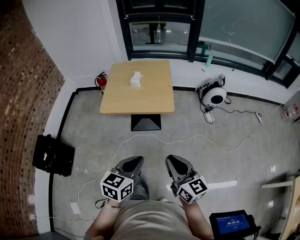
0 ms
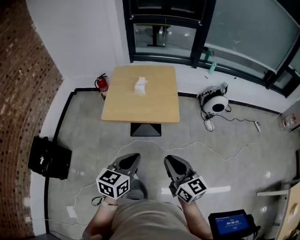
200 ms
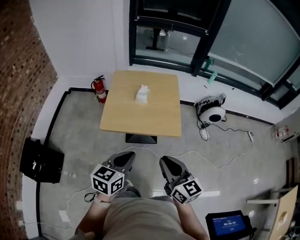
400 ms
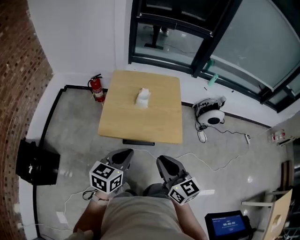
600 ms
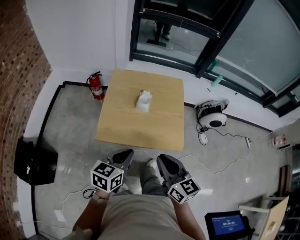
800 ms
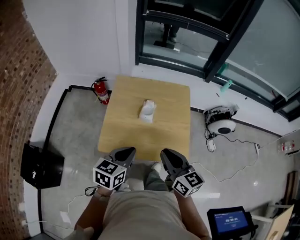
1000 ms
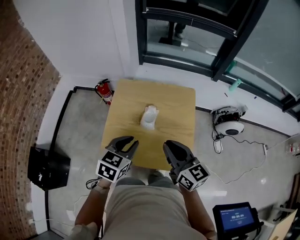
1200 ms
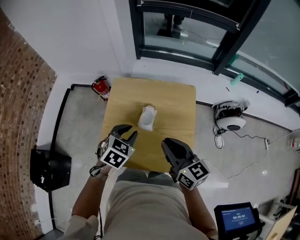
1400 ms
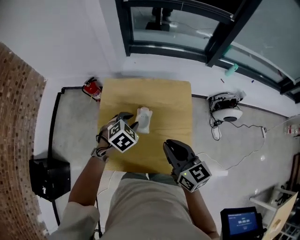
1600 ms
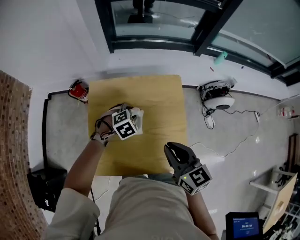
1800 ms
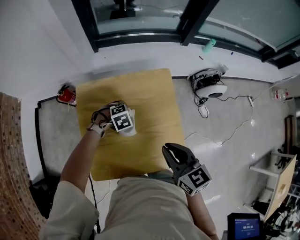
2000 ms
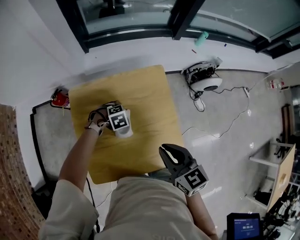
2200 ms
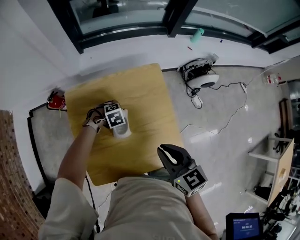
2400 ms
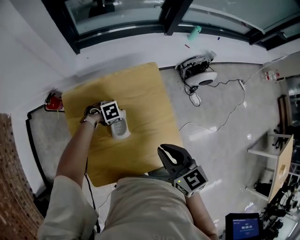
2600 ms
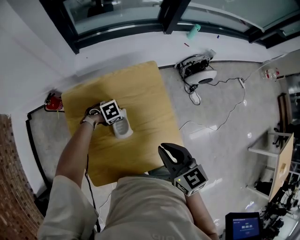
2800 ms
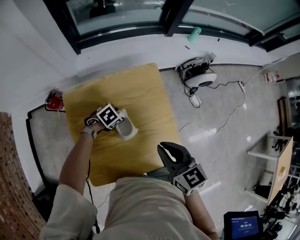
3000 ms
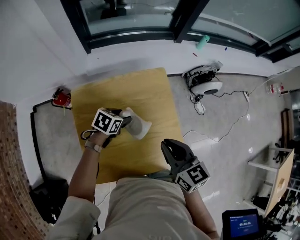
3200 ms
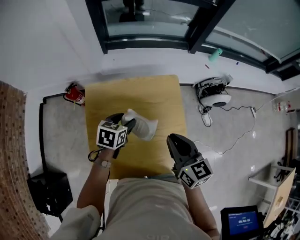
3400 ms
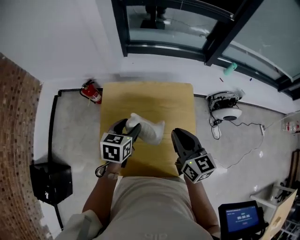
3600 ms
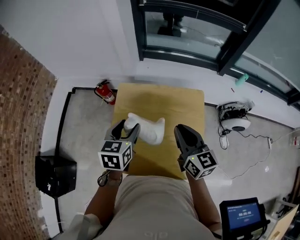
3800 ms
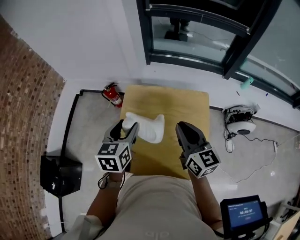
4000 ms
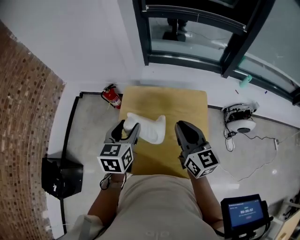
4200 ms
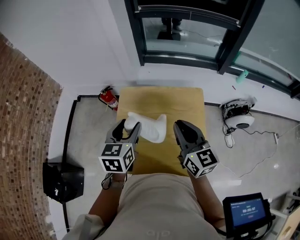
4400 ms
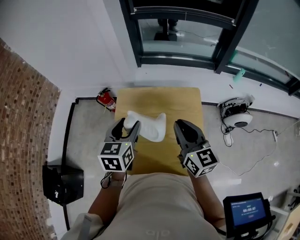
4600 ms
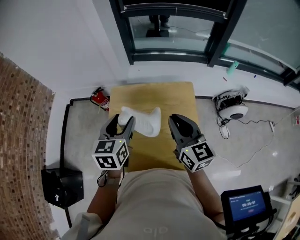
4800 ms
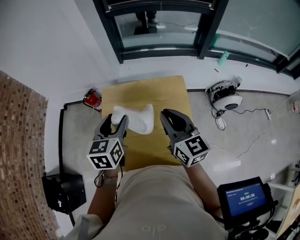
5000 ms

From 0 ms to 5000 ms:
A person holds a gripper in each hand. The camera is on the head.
From 0 ms to 1600 ms: The two grippers travel together, forward, roughly 70 cm. The left gripper angles its fingers downward, by some 30 degrees, and opens its fingers.
From 1600 ms to 3400 ms: The left gripper moves some 20 cm downward and comes back, rotates approximately 40 degrees, and opens up. The right gripper ends up about 5 cm from where it was.
From 3400 ms to 5000 ms: The left gripper goes approximately 15 cm upward and to the left, and rotates about 30 degrees, while the right gripper is displaced upward and forward by about 10 cm.

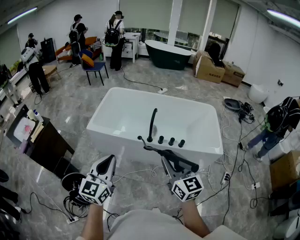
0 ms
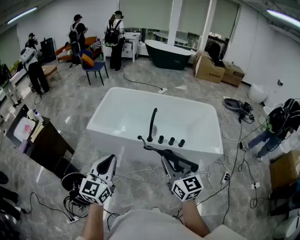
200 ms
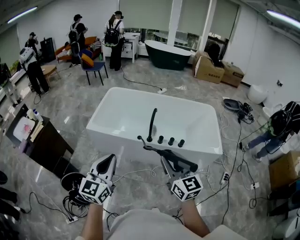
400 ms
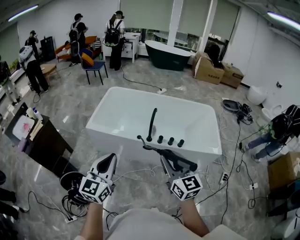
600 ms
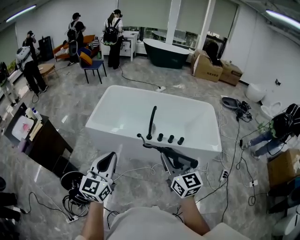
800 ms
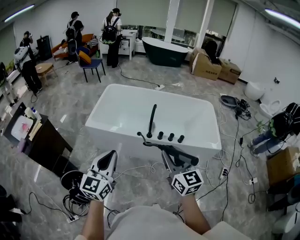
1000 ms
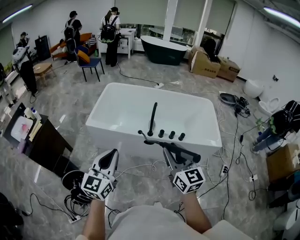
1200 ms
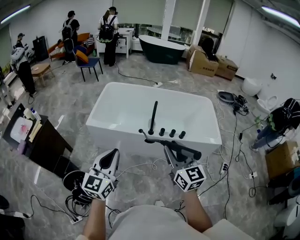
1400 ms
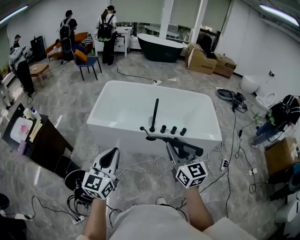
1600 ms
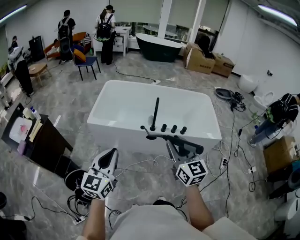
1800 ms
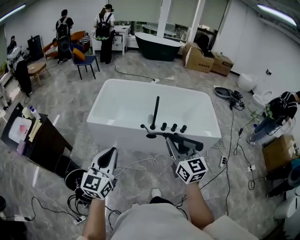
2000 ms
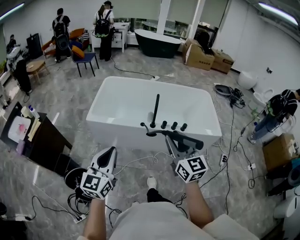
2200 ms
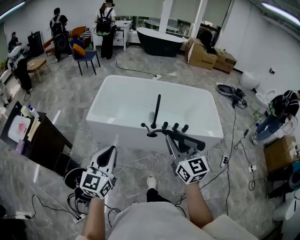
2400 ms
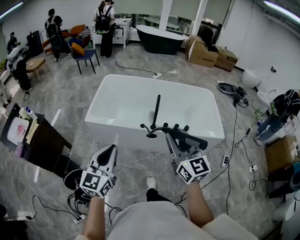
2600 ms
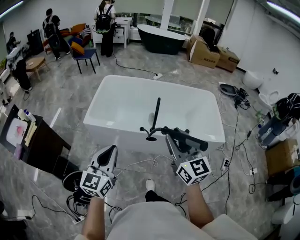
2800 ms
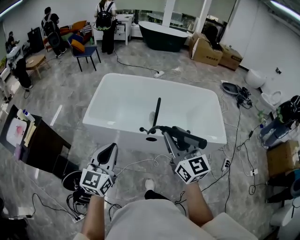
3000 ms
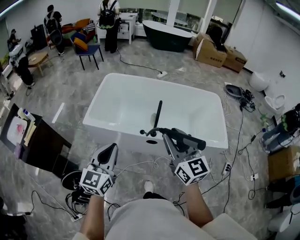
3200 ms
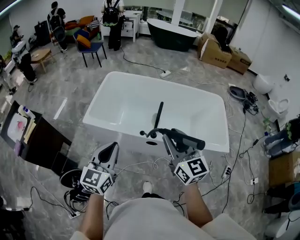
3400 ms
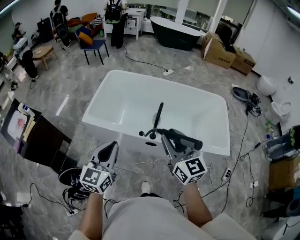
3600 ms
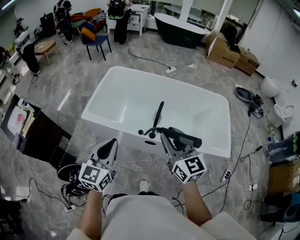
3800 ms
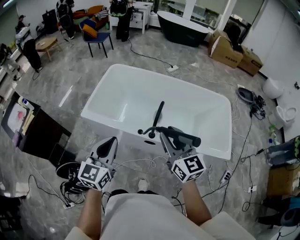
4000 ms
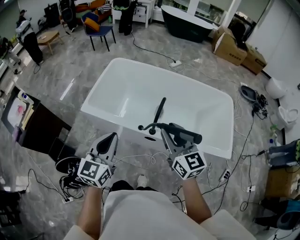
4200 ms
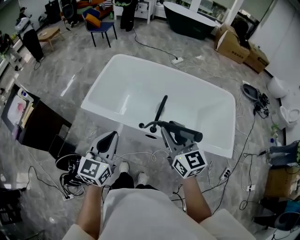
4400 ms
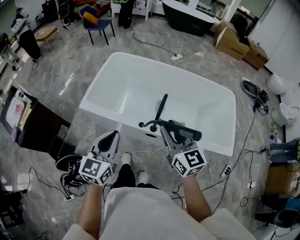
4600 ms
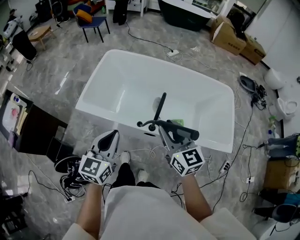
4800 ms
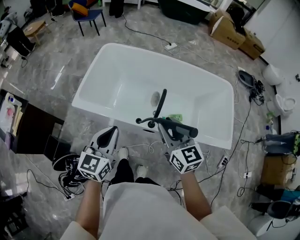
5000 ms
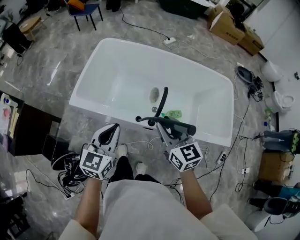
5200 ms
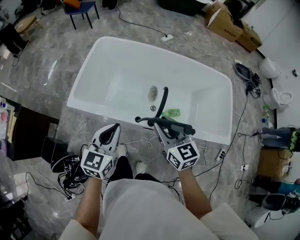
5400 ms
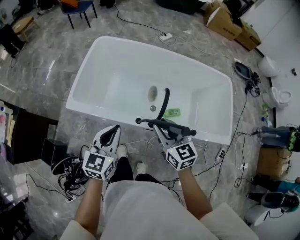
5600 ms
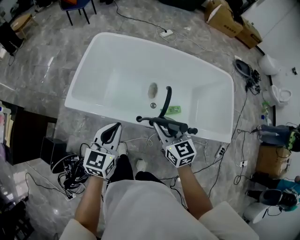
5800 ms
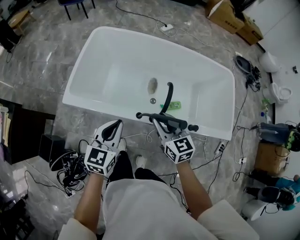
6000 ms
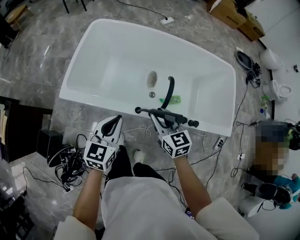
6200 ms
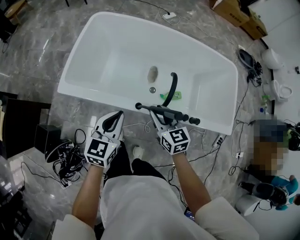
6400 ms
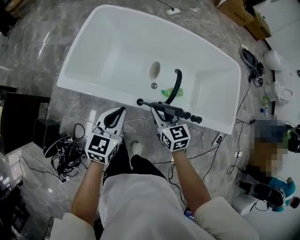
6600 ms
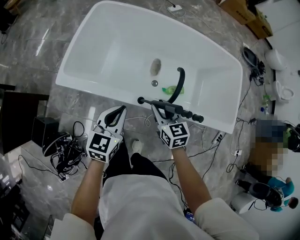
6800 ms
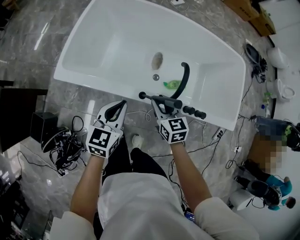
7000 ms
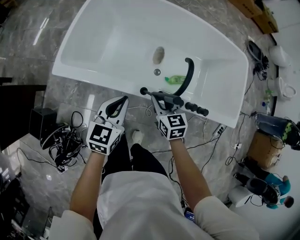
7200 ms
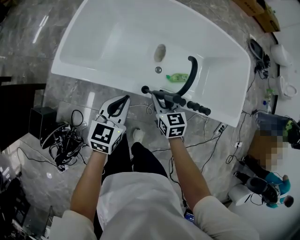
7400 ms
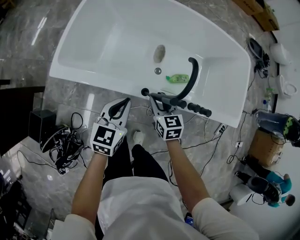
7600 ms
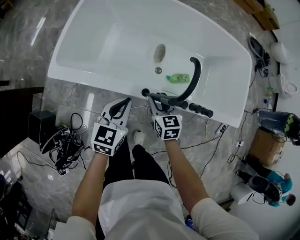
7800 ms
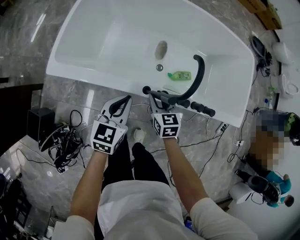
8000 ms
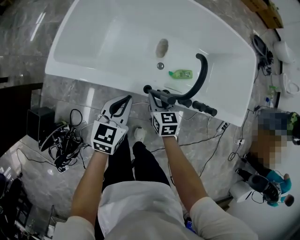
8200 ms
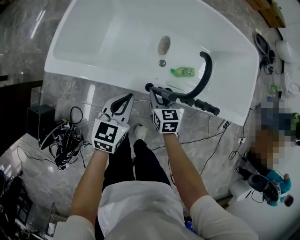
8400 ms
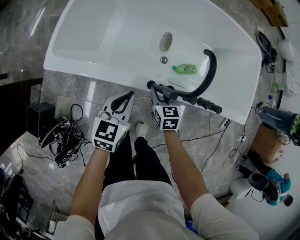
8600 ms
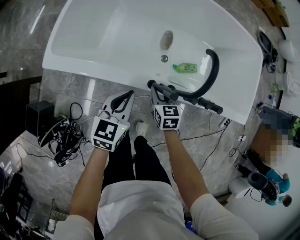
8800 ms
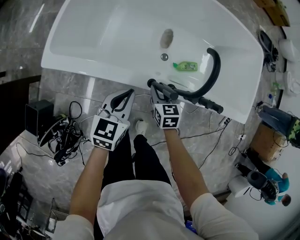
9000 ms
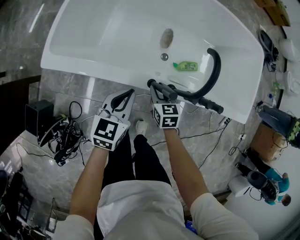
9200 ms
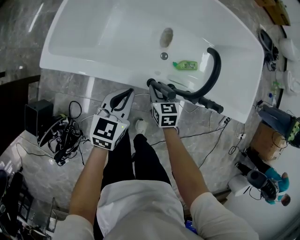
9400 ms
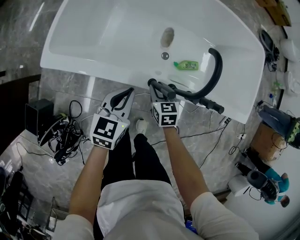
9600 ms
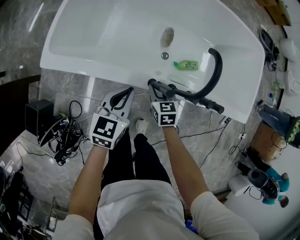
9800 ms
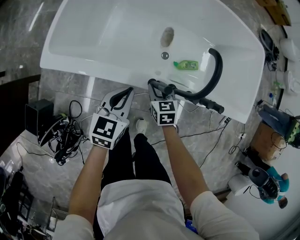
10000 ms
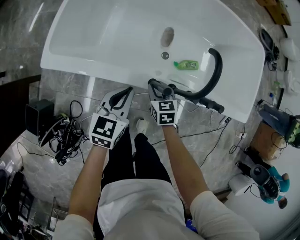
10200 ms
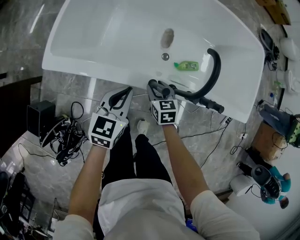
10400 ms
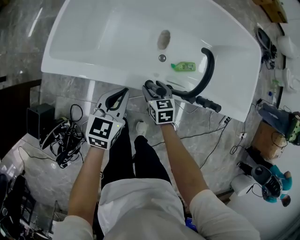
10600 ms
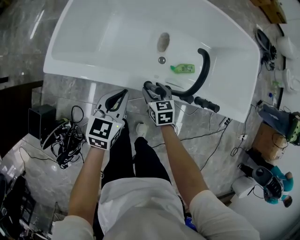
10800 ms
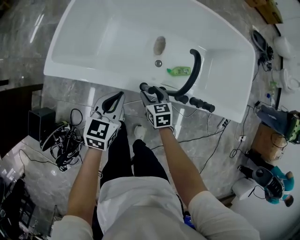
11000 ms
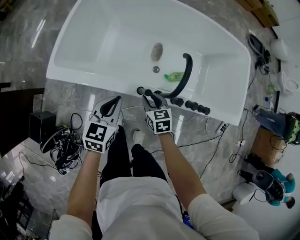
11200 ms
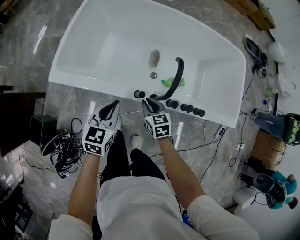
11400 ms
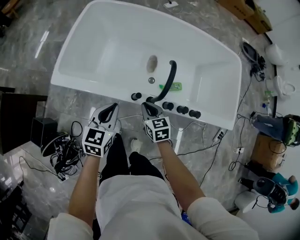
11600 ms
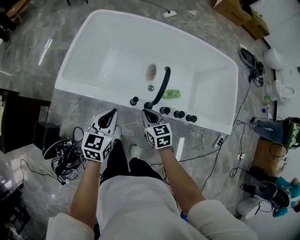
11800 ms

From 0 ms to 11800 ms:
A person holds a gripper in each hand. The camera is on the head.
From 0 ms to 1400 ms: The grippers move only a little.
From 1400 ms to 3000 ms: Both grippers move forward, approximately 10 cm.
From 3000 ms to 4400 ms: The left gripper is displaced forward and to the right by some 15 cm. Meanwhile the right gripper travels forward and downward by about 15 cm.
From 4400 ms to 6000 ms: The left gripper moves forward and downward, roughly 20 cm. The right gripper shifts roughly 20 cm downward and forward.
From 6000 ms to 7400 ms: The grippers both shift downward by approximately 15 cm.
From 7400 ms to 8800 ms: The grippers both shift downward by approximately 10 cm.
From 8800 ms to 10400 ms: The grippers make only small movements.
From 10400 ms to 11800 ms: The left gripper moves upward and backward, some 15 cm. Meanwhile the right gripper travels upward by about 15 cm, and closes.

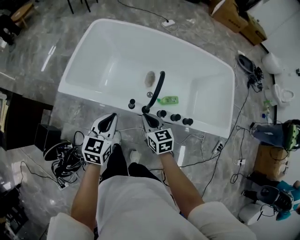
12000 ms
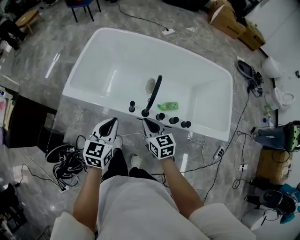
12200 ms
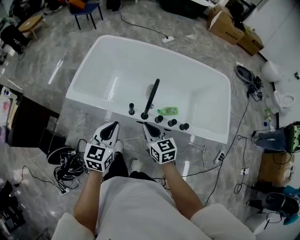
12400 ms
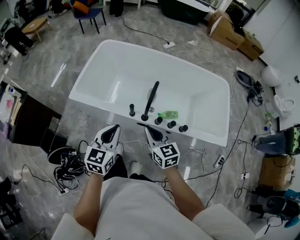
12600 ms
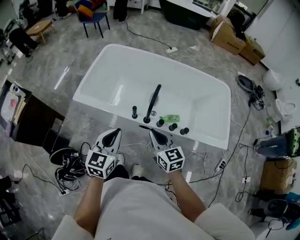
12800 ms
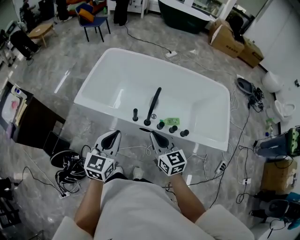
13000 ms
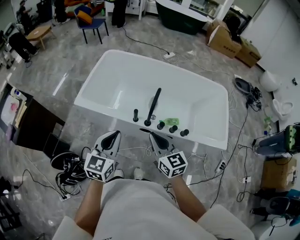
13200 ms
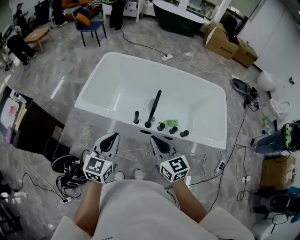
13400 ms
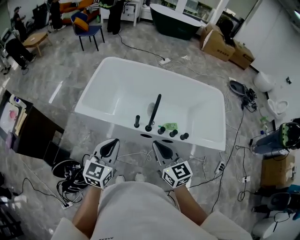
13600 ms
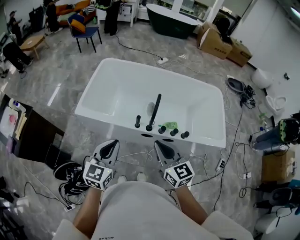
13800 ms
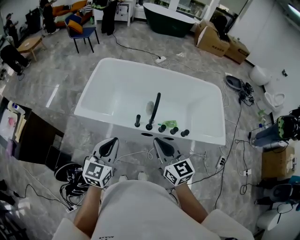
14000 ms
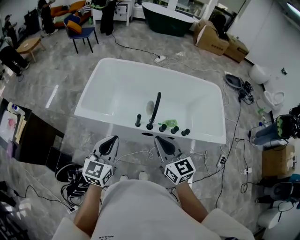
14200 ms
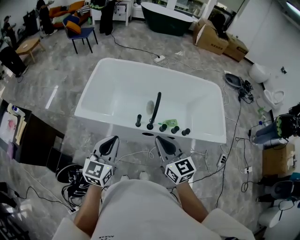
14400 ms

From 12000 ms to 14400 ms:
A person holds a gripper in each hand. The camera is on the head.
From 12000 ms to 13200 ms: The grippers both shift upward and backward by roughly 20 cm.
From 13200 ms to 14400 ms: The left gripper heads to the left, covering some 5 cm. Meanwhile the right gripper is displaced upward by approximately 5 cm.

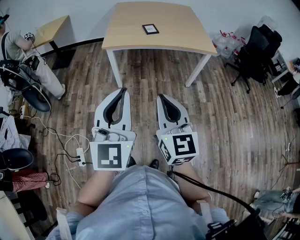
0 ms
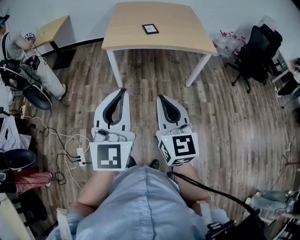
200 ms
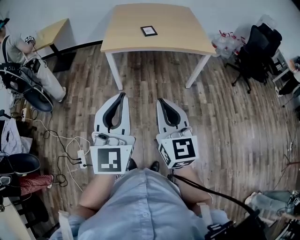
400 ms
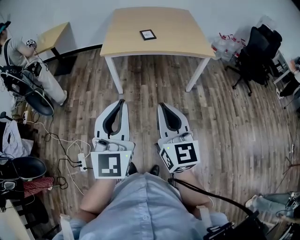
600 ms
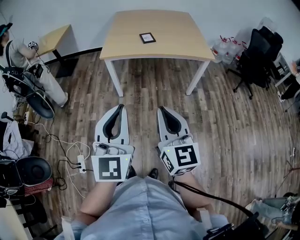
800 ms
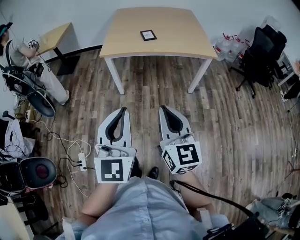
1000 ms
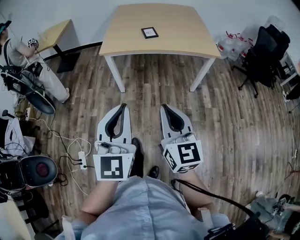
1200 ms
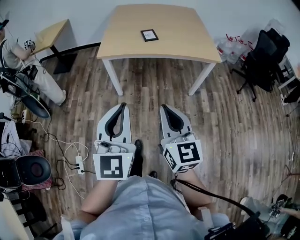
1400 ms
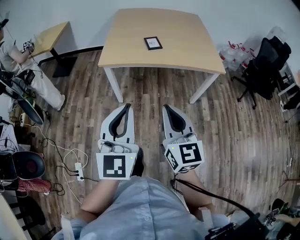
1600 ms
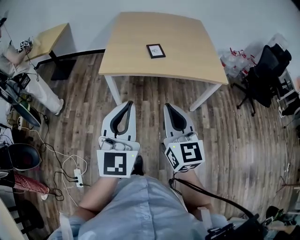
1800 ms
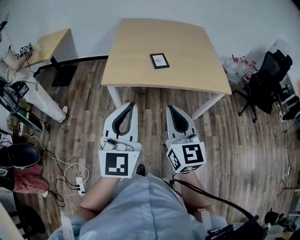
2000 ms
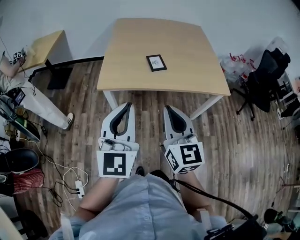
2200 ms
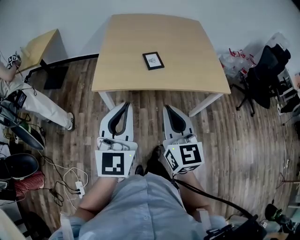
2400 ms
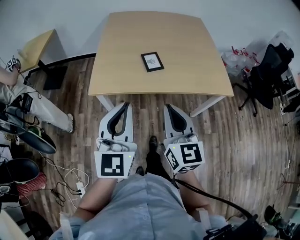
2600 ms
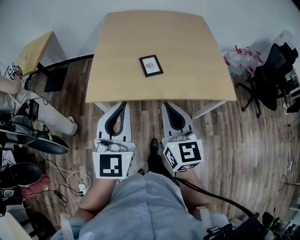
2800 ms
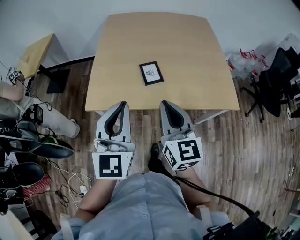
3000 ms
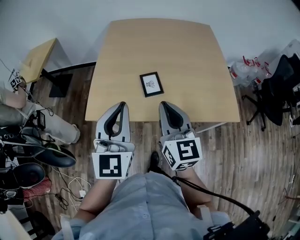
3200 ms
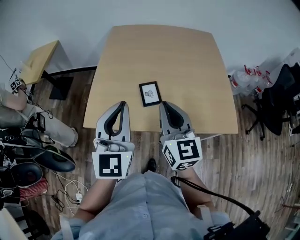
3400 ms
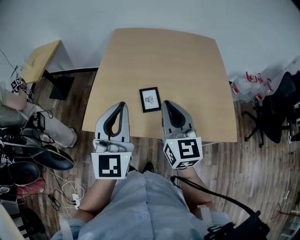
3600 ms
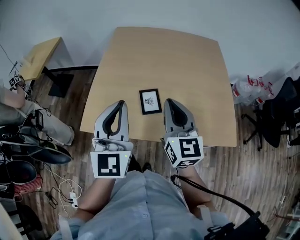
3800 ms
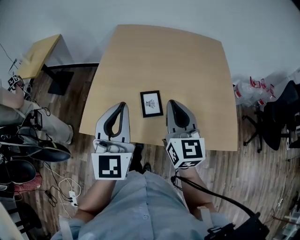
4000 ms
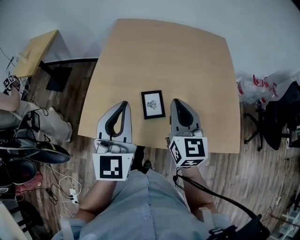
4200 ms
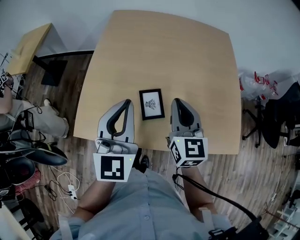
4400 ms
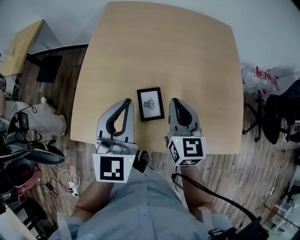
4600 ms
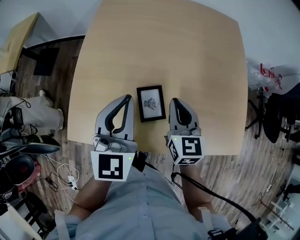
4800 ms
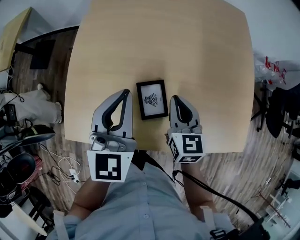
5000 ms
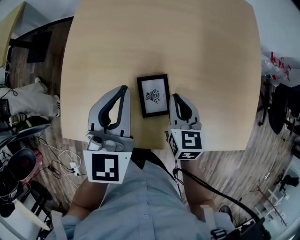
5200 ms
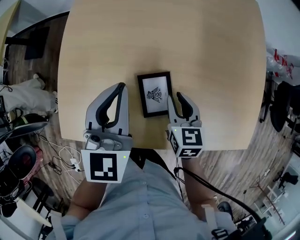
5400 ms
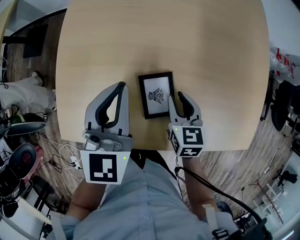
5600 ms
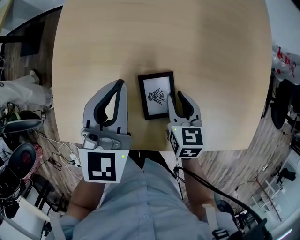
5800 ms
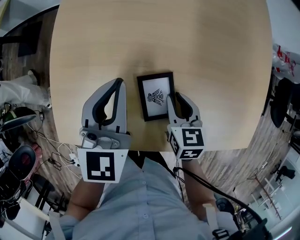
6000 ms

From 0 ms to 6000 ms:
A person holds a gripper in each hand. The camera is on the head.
From 0 ms to 1600 ms: Both grippers travel together forward, roughly 15 cm.
From 1600 ms to 3000 ms: The grippers both shift forward by about 30 cm.
From 3000 ms to 4400 ms: The two grippers go about 20 cm forward.
From 4400 ms to 6000 ms: The right gripper shifts some 20 cm downward, angles its fingers downward, by some 30 degrees, and opens up. The left gripper is displaced downward and forward by approximately 15 cm, and turns by about 20 degrees.
